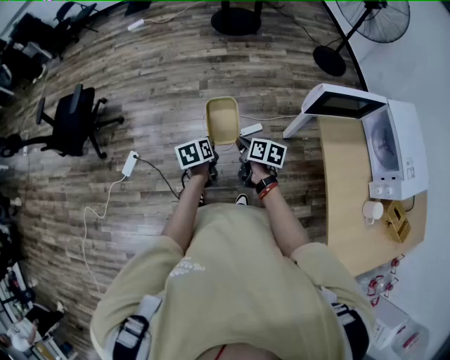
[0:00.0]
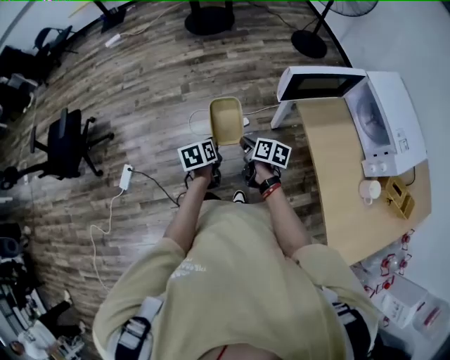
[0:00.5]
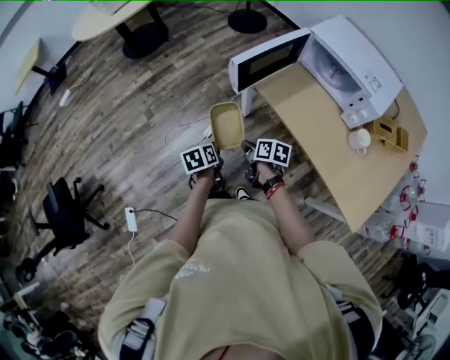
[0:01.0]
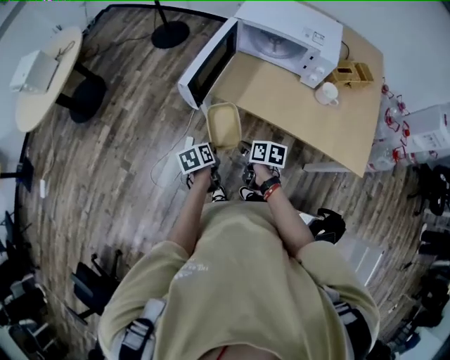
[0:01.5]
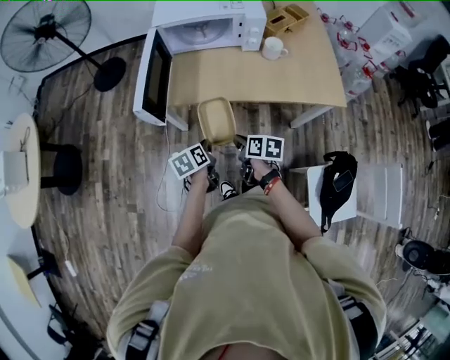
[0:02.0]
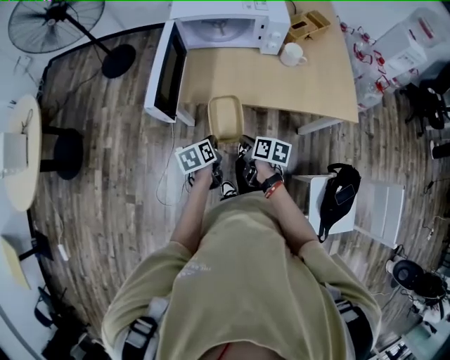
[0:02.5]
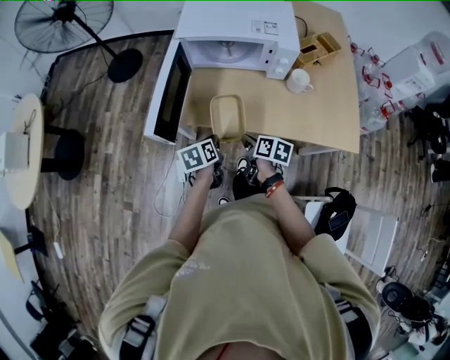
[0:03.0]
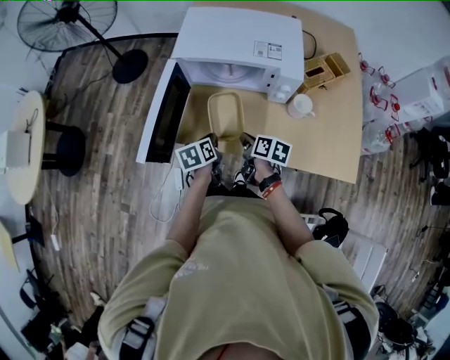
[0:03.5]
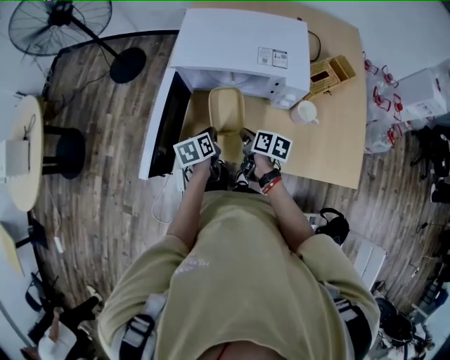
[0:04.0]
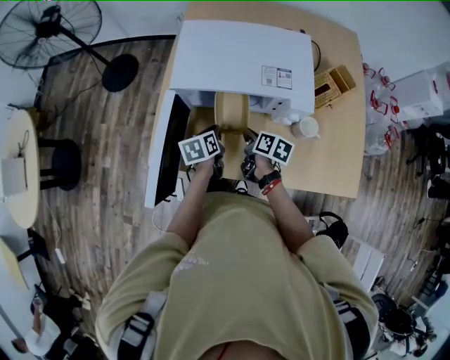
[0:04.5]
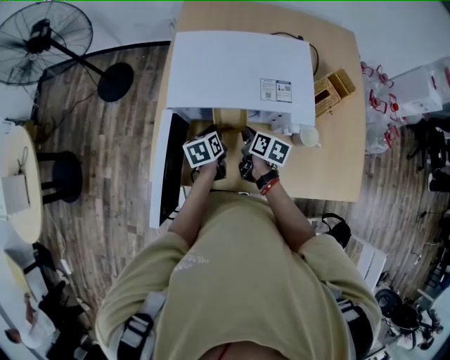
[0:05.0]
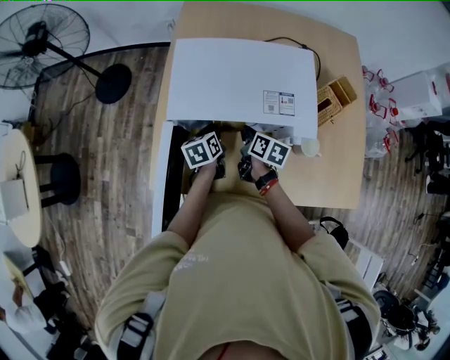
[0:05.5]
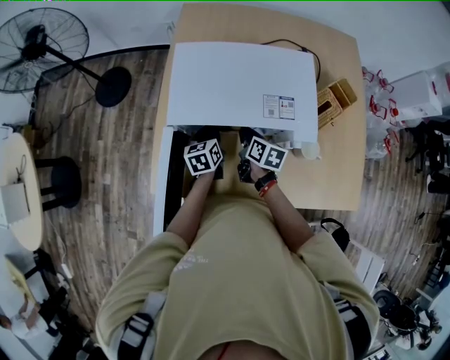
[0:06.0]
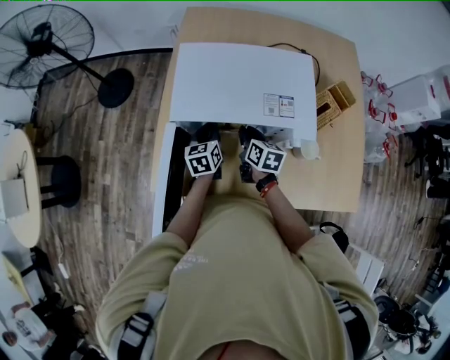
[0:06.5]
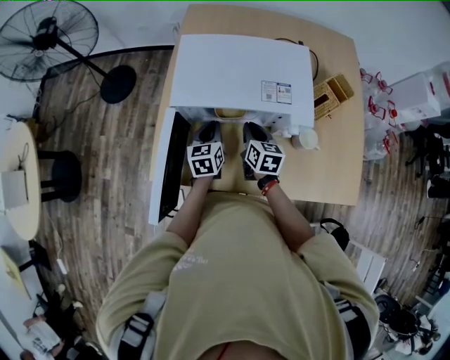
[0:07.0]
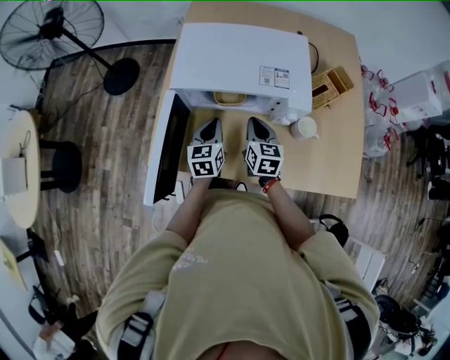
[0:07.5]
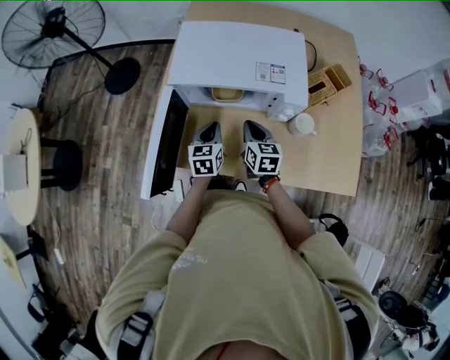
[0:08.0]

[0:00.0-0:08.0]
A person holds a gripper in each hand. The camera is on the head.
0.0 to 2.0 s: The right gripper ends up about 30 cm from where it was, and changes its angle by some 80 degrees. The left gripper moves about 35 cm, and swivels some 80 degrees.
2.0 to 4.0 s: The two grippers go roughly 30 cm forward.
4.0 to 6.0 s: The two grippers go approximately 20 cm forward.
6.0 to 8.0 s: Both grippers travel together backward, roughly 15 cm. The right gripper swivels roughly 30 degrees.

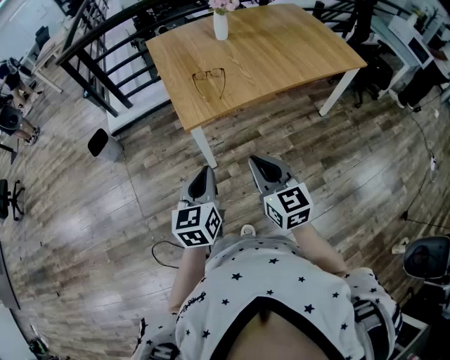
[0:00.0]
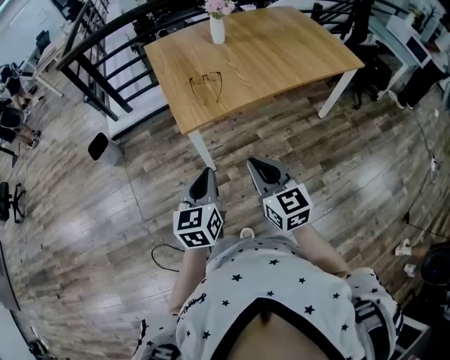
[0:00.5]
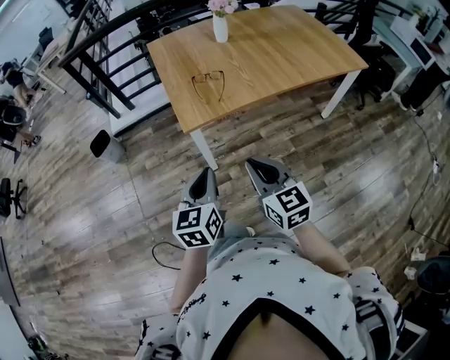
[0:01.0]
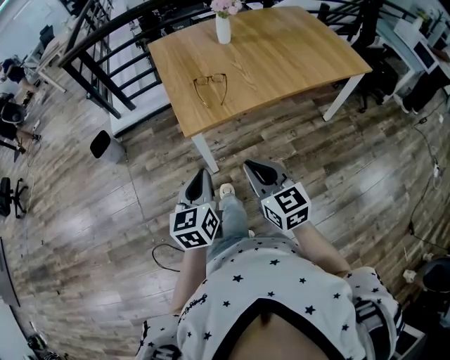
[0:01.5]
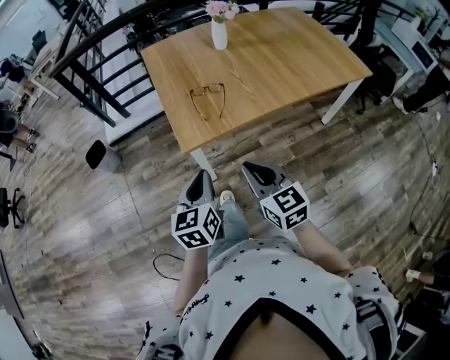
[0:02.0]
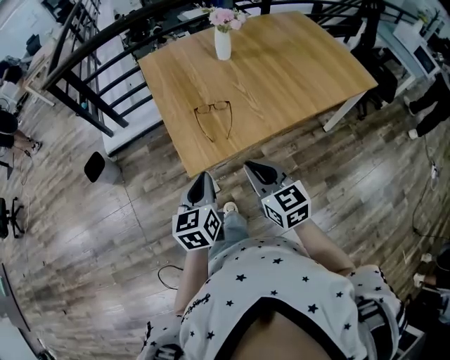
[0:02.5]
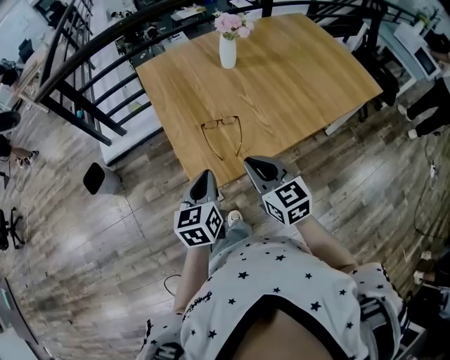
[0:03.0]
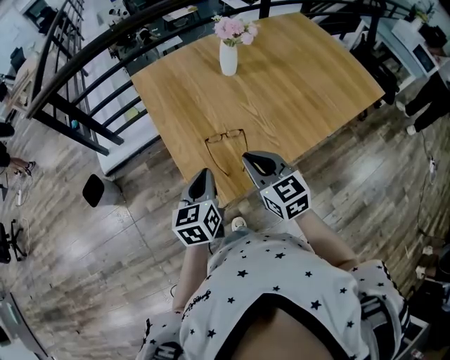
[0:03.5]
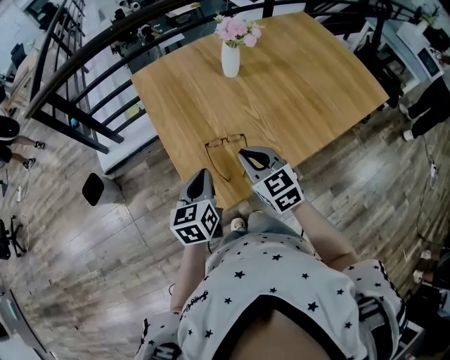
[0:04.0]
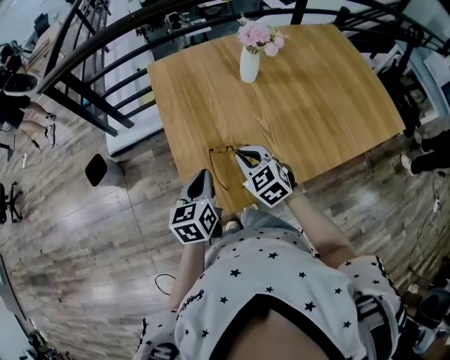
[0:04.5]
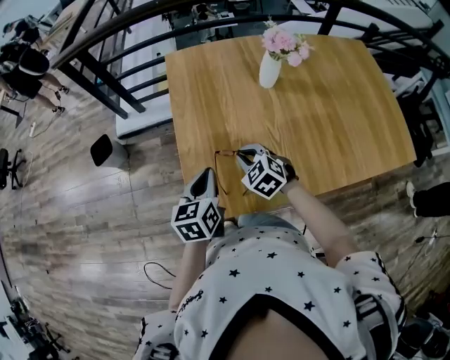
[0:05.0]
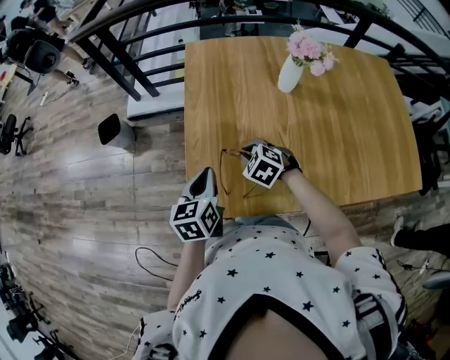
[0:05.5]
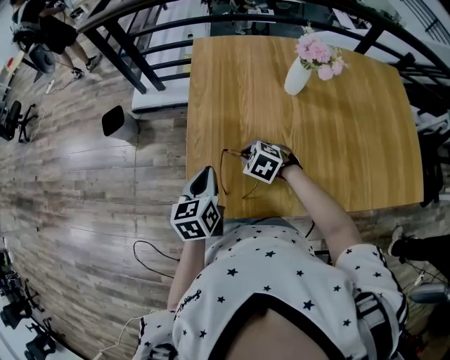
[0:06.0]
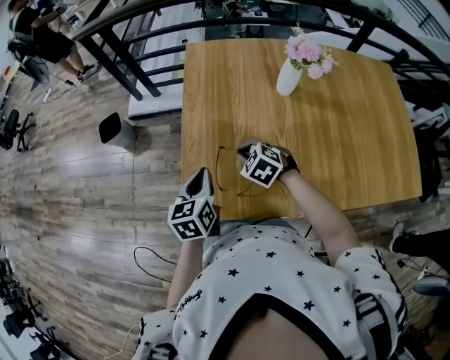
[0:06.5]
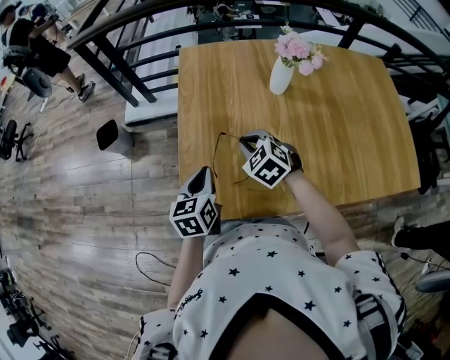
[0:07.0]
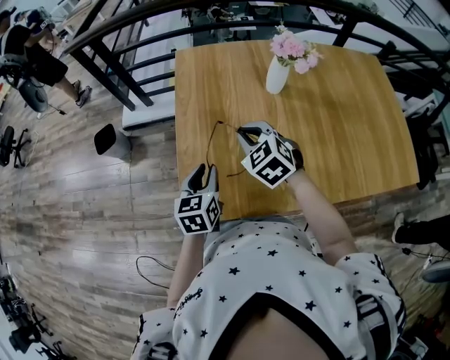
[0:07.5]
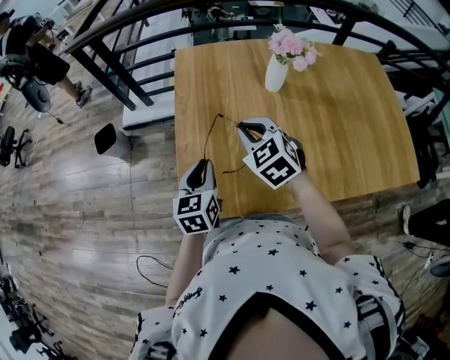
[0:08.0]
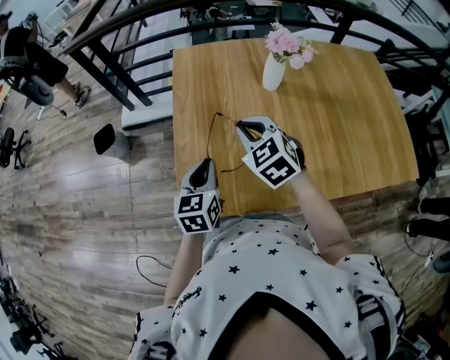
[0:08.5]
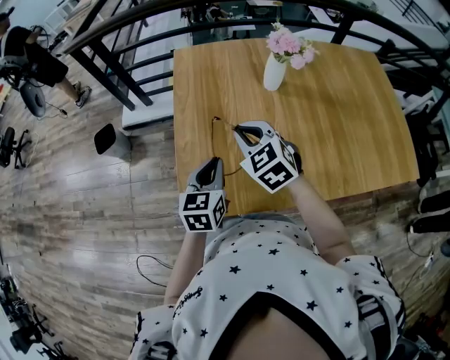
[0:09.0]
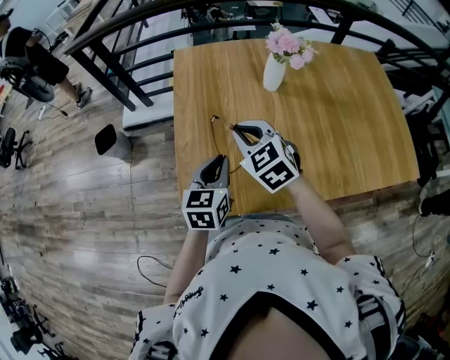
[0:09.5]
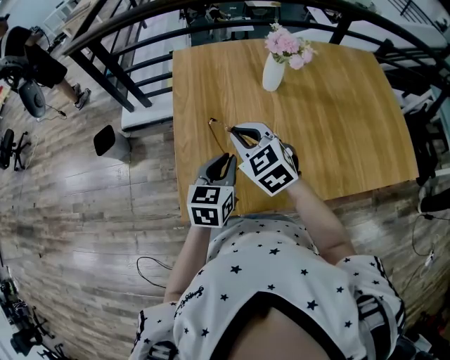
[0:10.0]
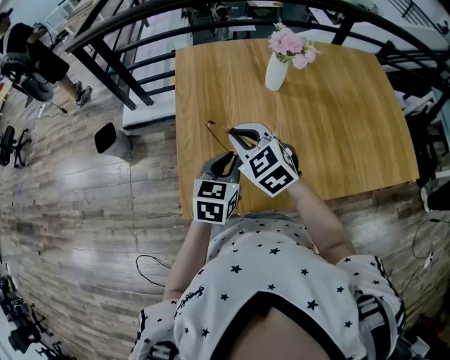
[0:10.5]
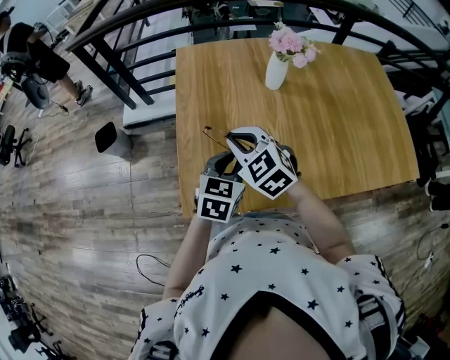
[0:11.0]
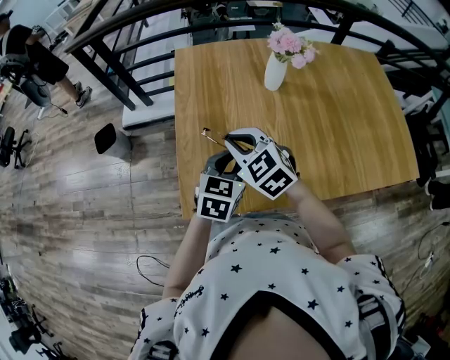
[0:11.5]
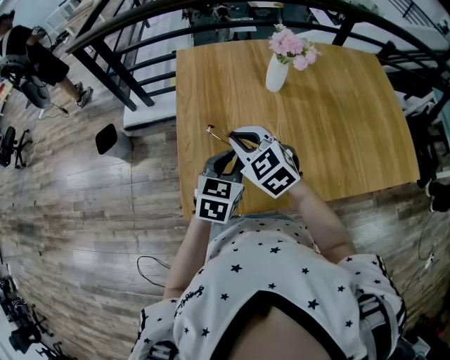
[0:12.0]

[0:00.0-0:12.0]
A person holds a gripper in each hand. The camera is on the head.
0.0 to 2.0 s: The grippers both shift forward by some 10 cm.
2.0 to 4.0 s: The grippers both shift forward by some 30 cm.
4.0 to 6.0 s: The left gripper turns by some 30 degrees, while the right gripper moves downward, approximately 15 cm, and angles its fingers downward, by approximately 40 degrees.
6.0 to 8.0 s: The right gripper goes approximately 15 cm upward, and rotates some 40 degrees.
8.0 to 10.0 s: The left gripper heads to the right, covering some 5 cm.
10.0 to 12.0 s: The grippers move only a little.

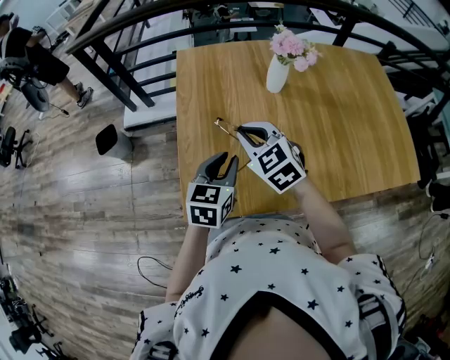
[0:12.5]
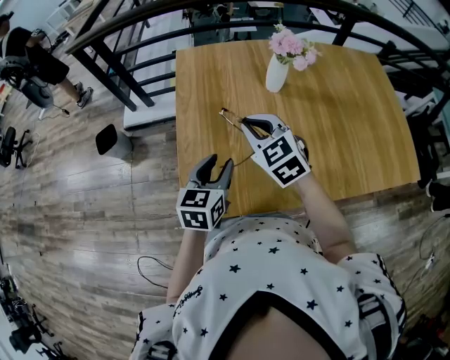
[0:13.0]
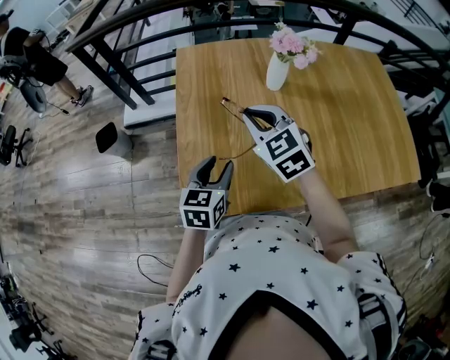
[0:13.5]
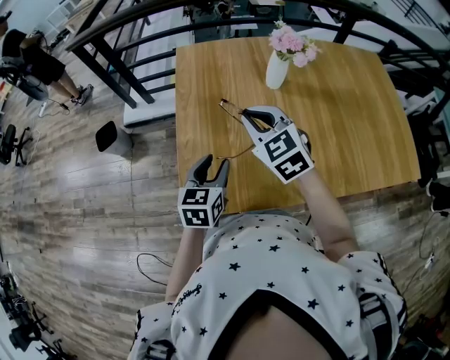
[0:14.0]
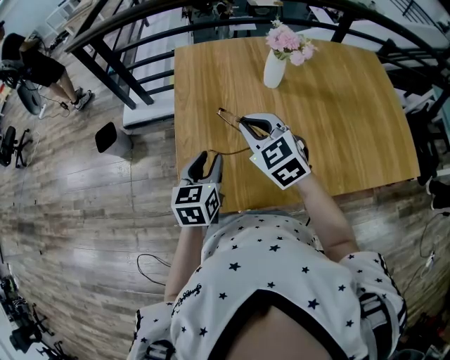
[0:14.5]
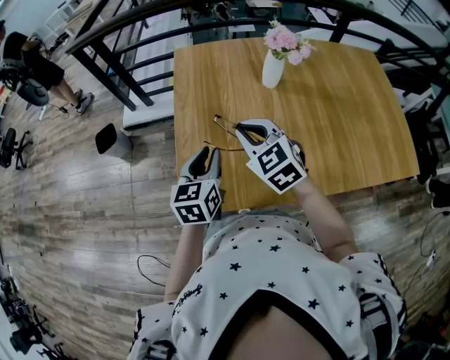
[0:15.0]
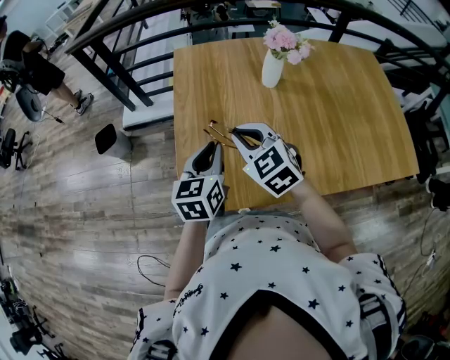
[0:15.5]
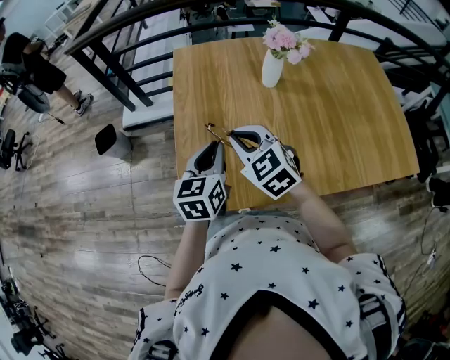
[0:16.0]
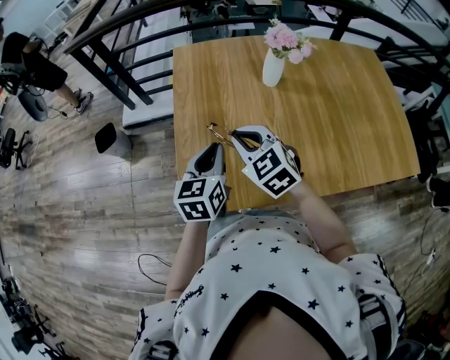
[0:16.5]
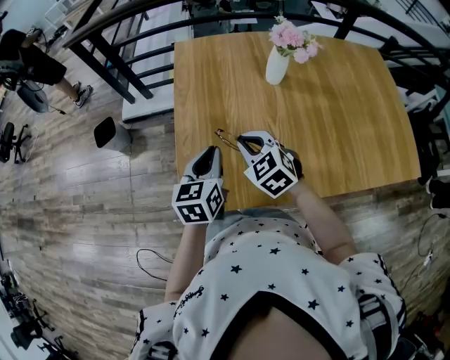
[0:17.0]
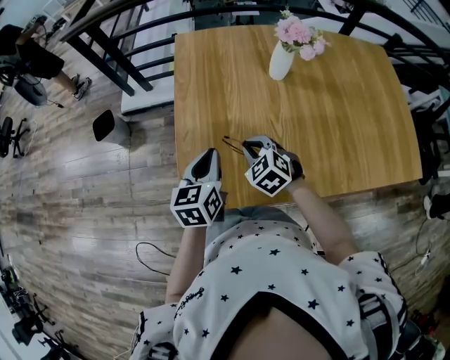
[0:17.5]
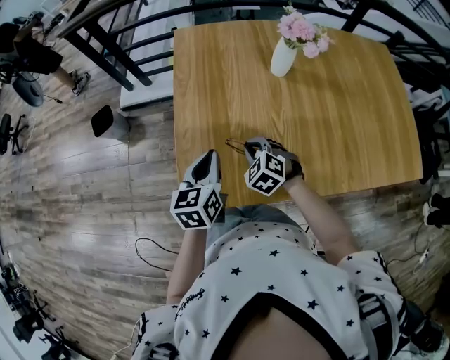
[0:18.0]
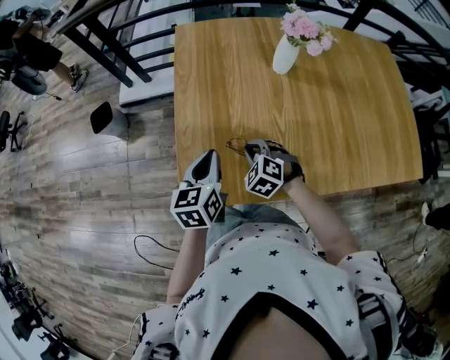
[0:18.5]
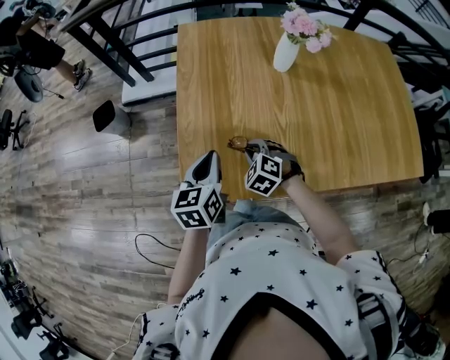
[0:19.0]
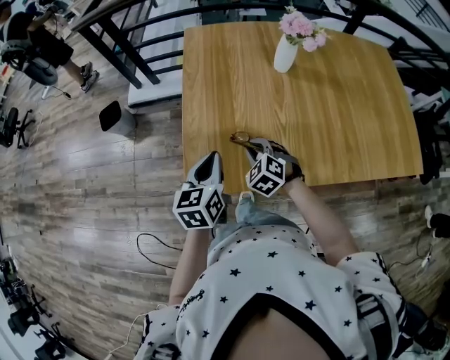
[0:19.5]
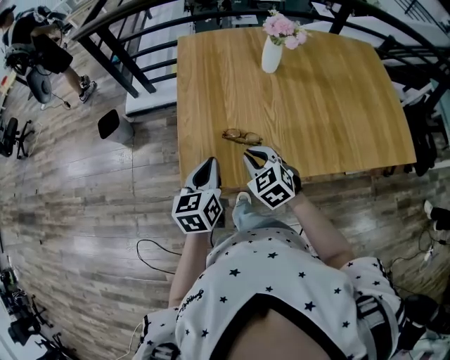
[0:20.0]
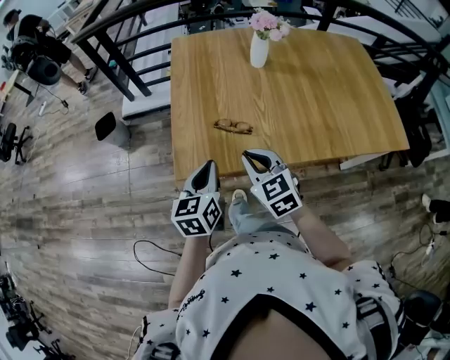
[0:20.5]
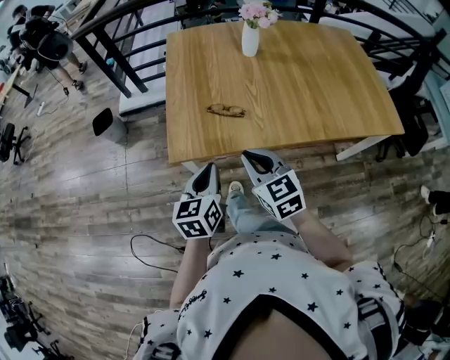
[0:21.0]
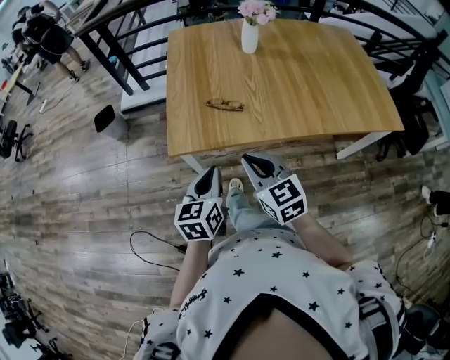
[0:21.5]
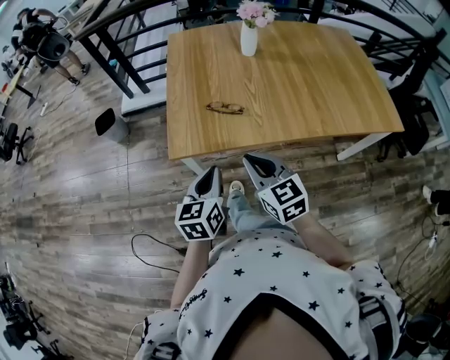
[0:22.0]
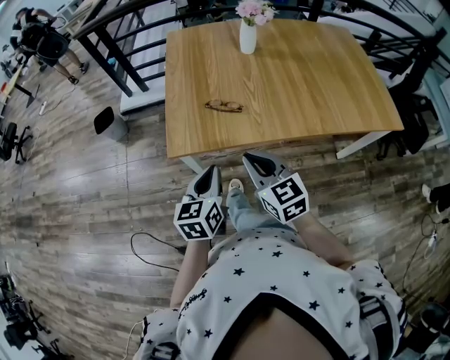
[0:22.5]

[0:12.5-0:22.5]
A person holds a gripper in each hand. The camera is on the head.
12.5 to 14.5 s: The grippers make only small movements.
14.5 to 16.5 s: The left gripper closes up.
16.5 to 18.5 s: The right gripper heads downward, covering some 20 cm, and turns by roughly 30 degrees. Meanwhile the left gripper moves about 5 cm.
18.5 to 20.5 s: The right gripper travels backward and upward by about 20 cm, and turns by roughly 40 degrees; the left gripper heads backward, covering about 15 cm.
20.5 to 22.5 s: The grippers both shift backward by roughly 10 cm.
